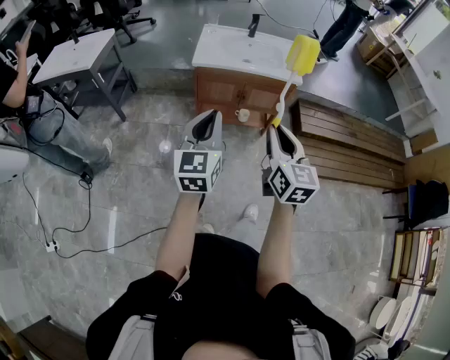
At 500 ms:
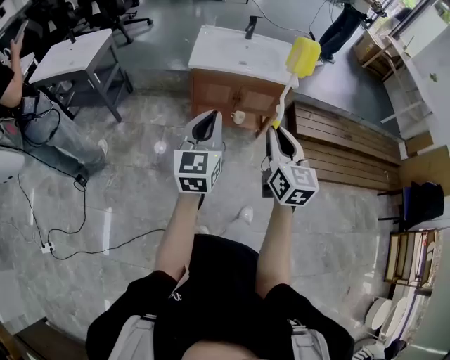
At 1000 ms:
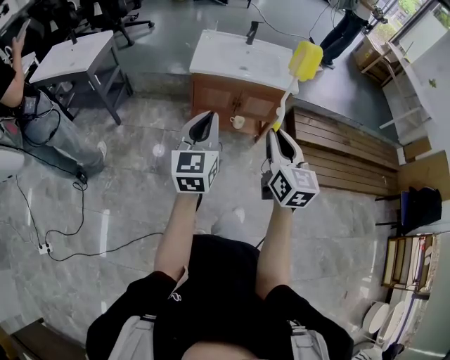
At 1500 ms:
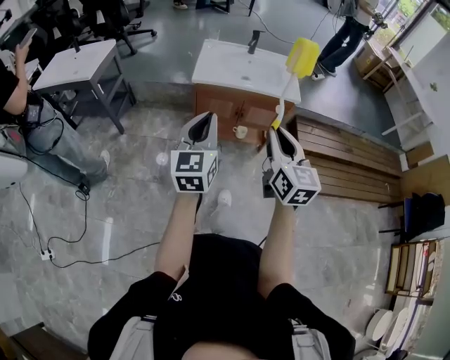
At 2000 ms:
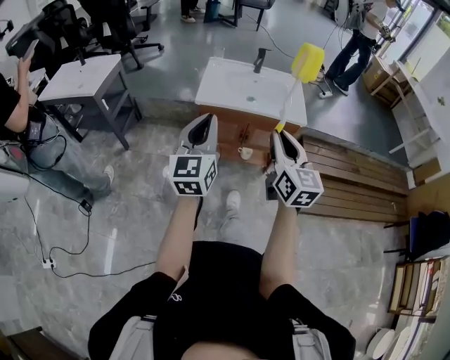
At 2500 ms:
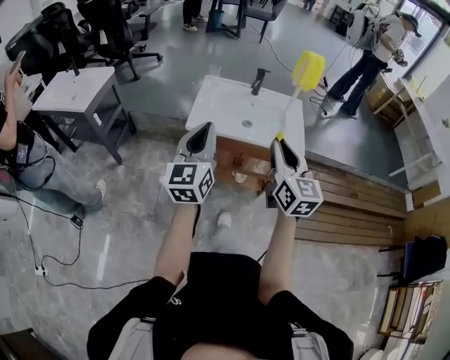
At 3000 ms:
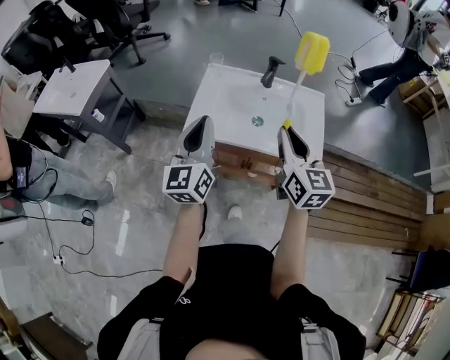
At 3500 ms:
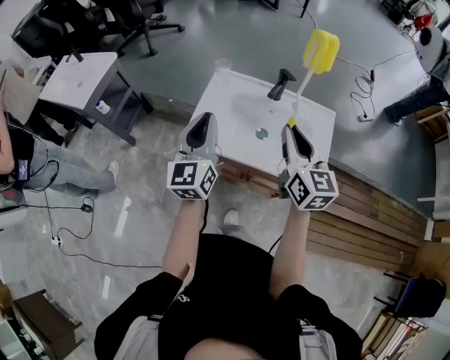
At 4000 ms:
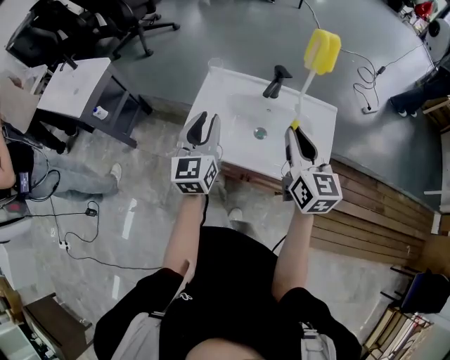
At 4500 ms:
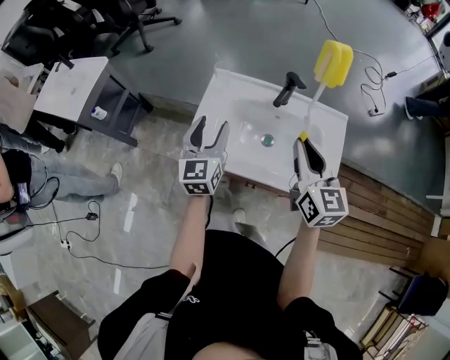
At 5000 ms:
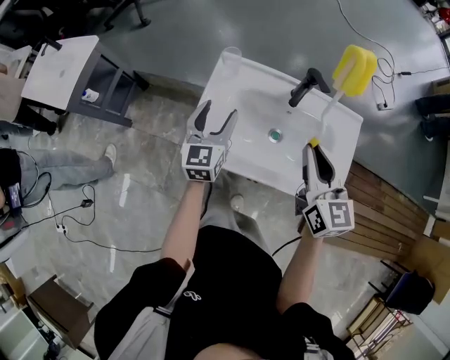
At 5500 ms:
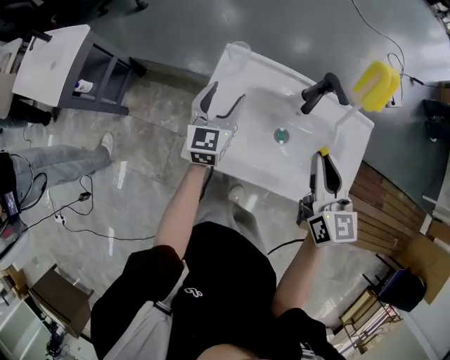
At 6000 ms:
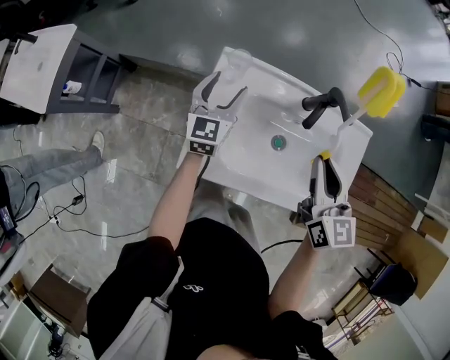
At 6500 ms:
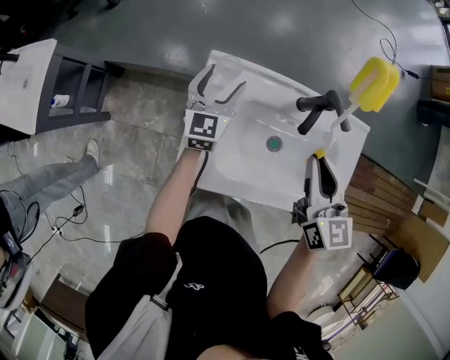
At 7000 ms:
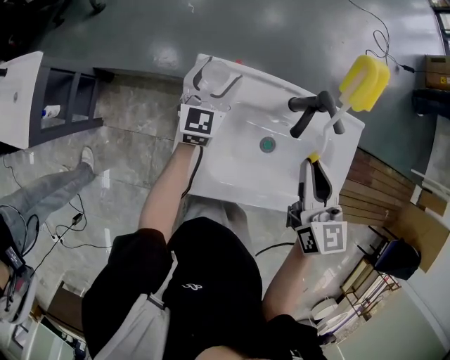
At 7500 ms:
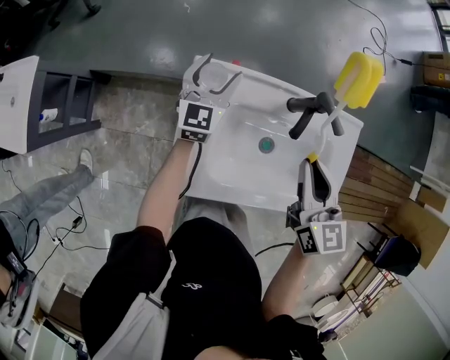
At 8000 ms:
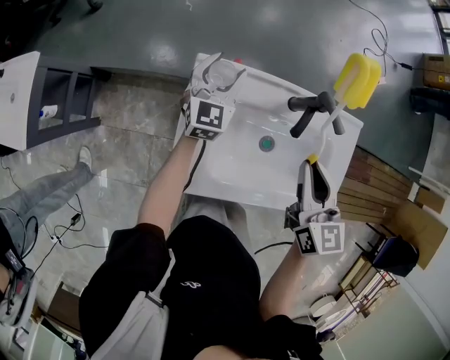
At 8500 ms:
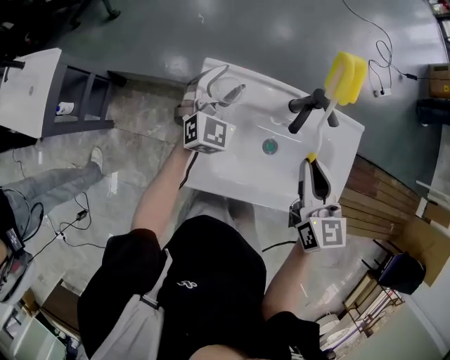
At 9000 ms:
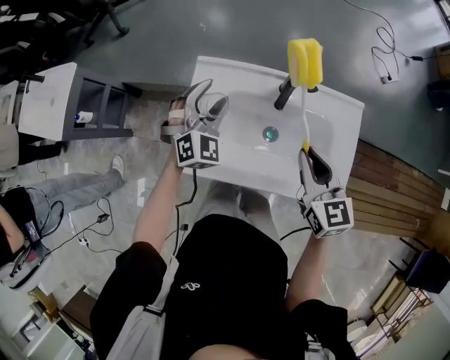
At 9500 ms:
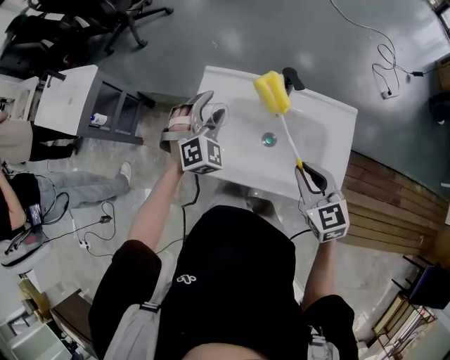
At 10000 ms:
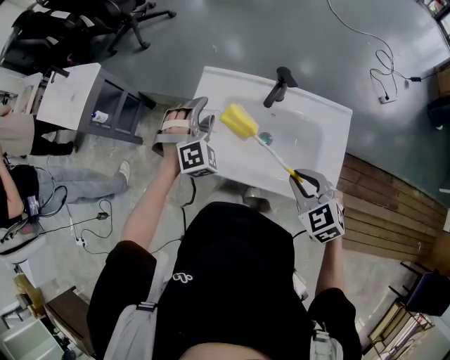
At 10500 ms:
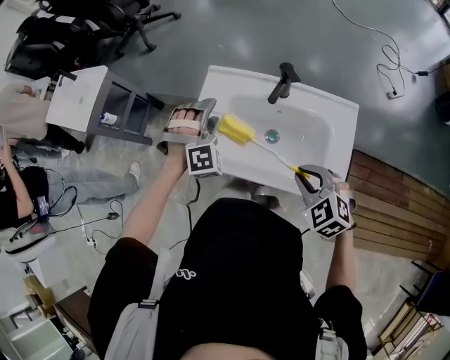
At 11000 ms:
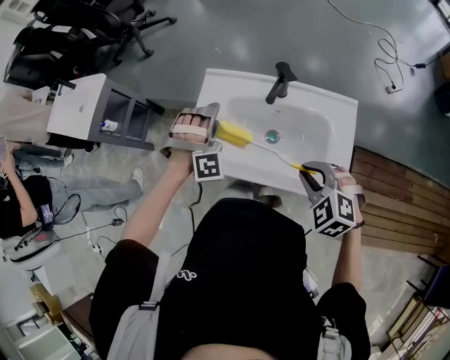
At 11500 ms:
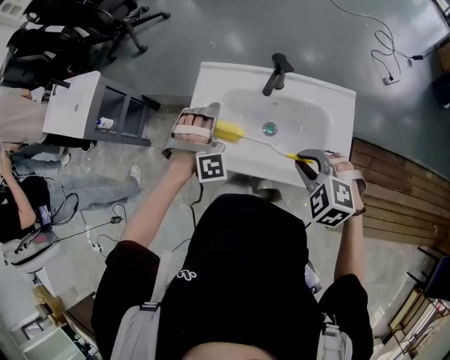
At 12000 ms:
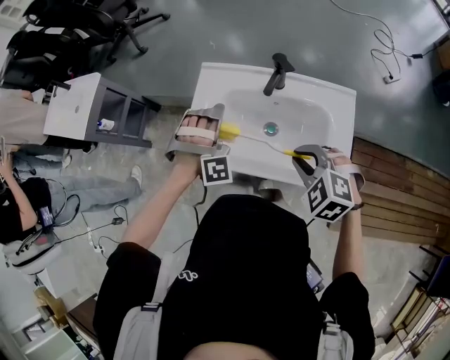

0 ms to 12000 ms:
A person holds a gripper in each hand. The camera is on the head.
0 ms to 2000 ms: The grippers both shift forward by roughly 15 cm.
2000 ms to 4000 ms: The two grippers travel together, forward, some 40 cm.
4000 ms to 6000 ms: The left gripper travels forward and downward by approximately 30 cm, and opens up. Meanwhile the right gripper moves forward and downward, approximately 15 cm.
6000 ms to 8000 ms: The left gripper travels forward by some 10 cm.
8000 ms to 10000 ms: The right gripper changes place by approximately 20 cm, and turns by about 50 degrees; the left gripper shifts by approximately 20 cm, and twists about 60 degrees clockwise, seen from behind.
10000 ms to 12000 ms: The left gripper changes its angle by roughly 30 degrees. The right gripper rotates approximately 20 degrees.

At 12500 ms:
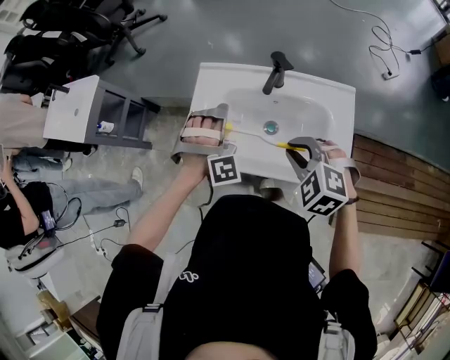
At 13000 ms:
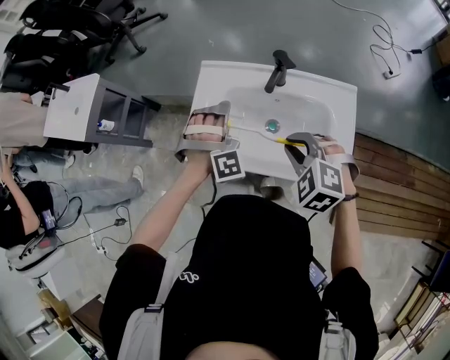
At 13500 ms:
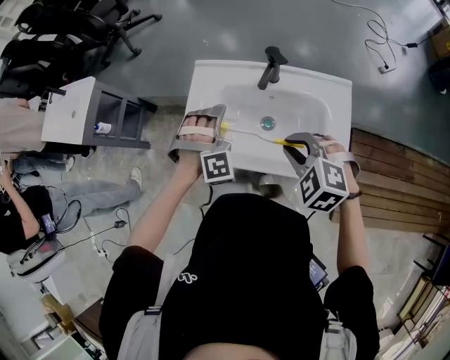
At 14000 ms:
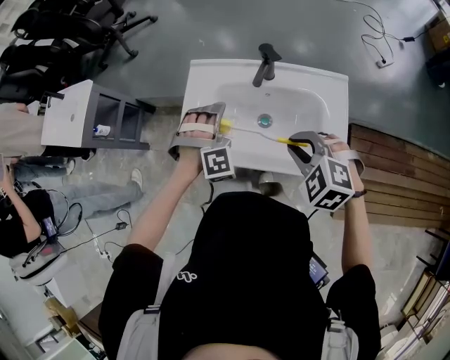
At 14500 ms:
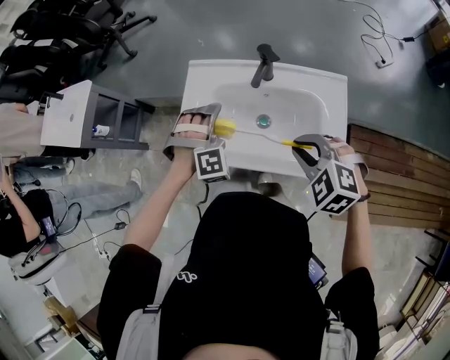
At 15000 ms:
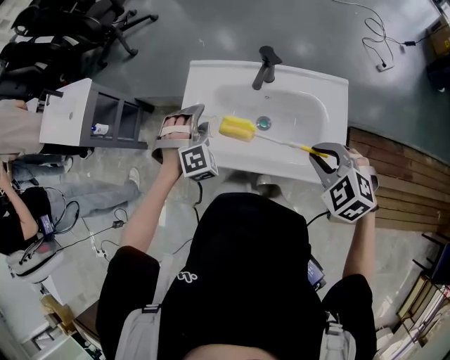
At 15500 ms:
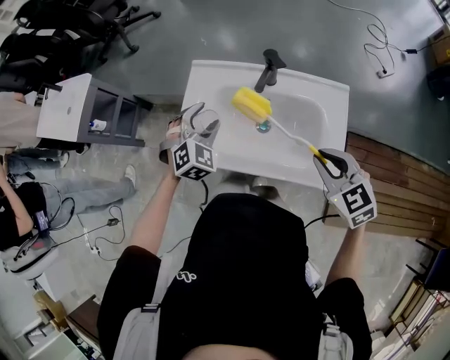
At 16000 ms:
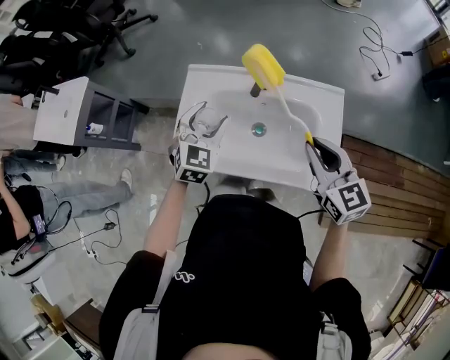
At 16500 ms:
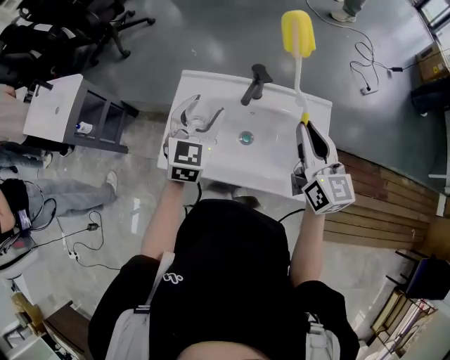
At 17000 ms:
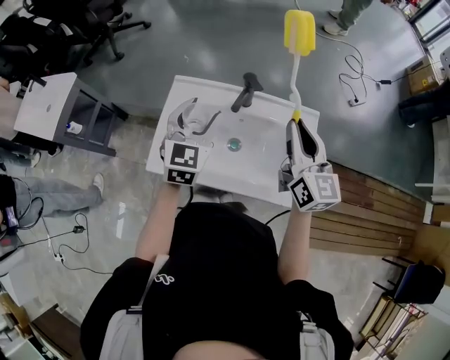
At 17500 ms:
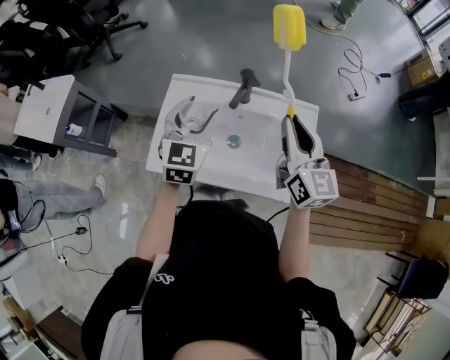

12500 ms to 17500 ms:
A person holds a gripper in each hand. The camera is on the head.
12500 ms to 15000 ms: The left gripper shifts by approximately 5 cm, and changes its angle by approximately 20 degrees. Meanwhile the right gripper is displaced to the right and backward by approximately 10 cm.
15000 ms to 17500 ms: The left gripper goes about 15 cm upward and to the right, and rolls counterclockwise, seen from behind, by about 60 degrees, while the right gripper goes some 15 cm upward and forward, and tips its fingers upward by approximately 50 degrees.

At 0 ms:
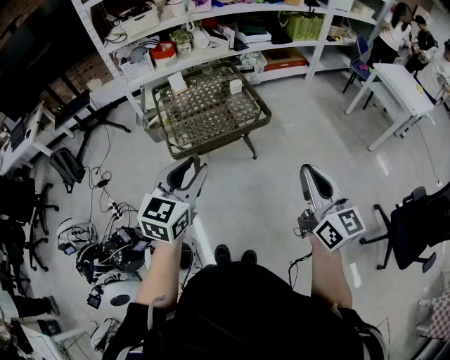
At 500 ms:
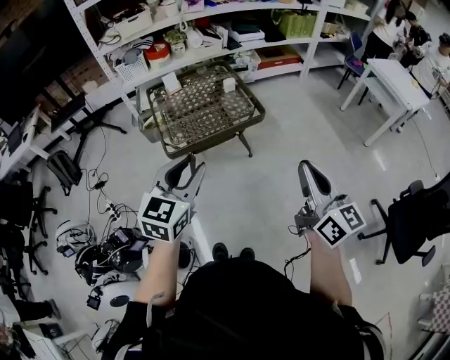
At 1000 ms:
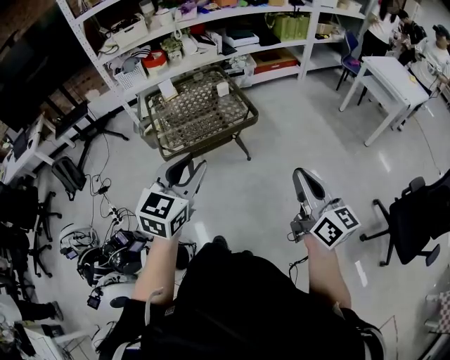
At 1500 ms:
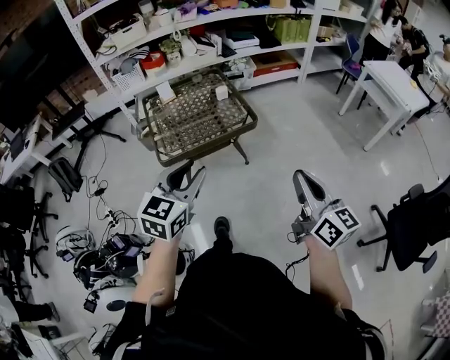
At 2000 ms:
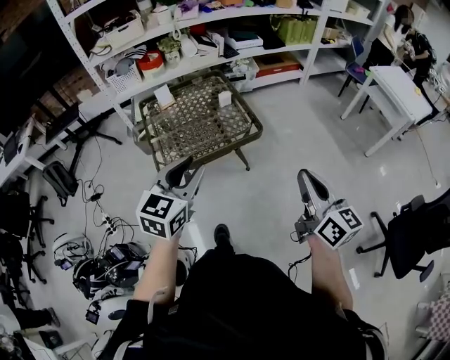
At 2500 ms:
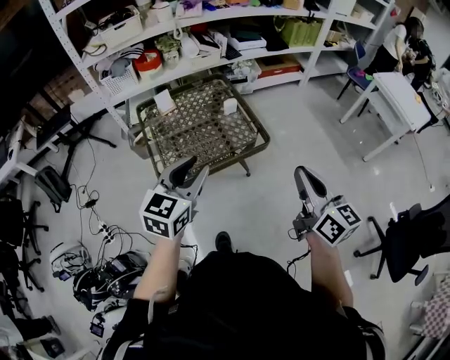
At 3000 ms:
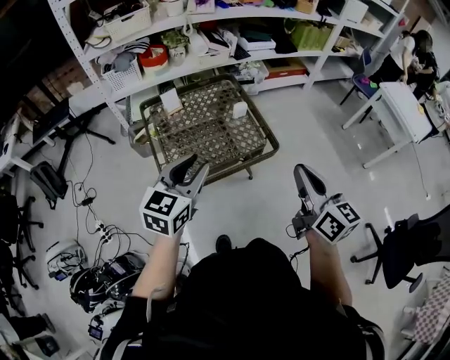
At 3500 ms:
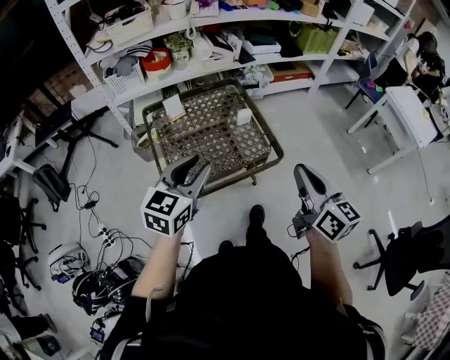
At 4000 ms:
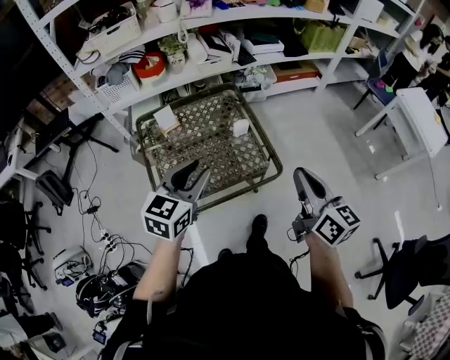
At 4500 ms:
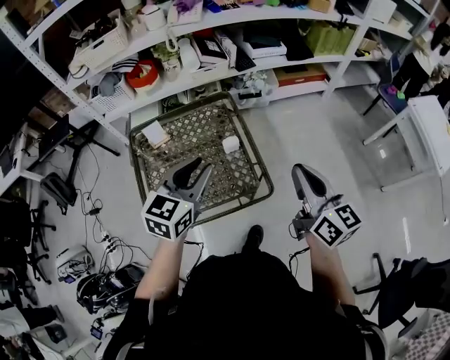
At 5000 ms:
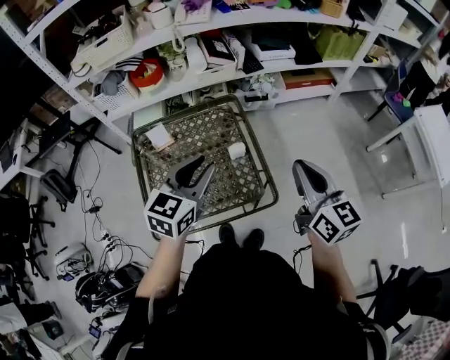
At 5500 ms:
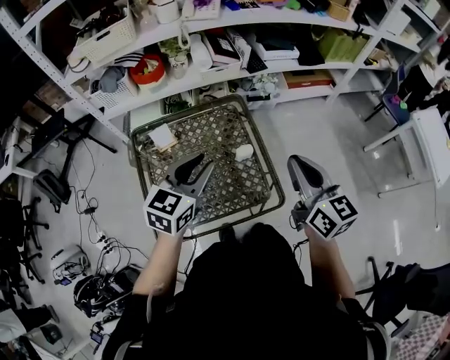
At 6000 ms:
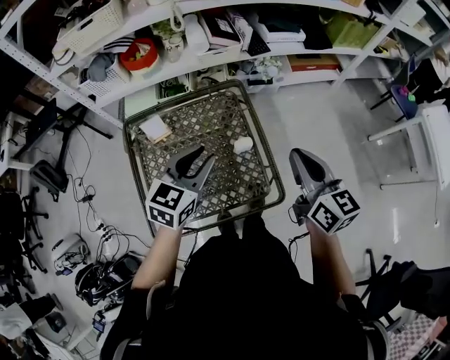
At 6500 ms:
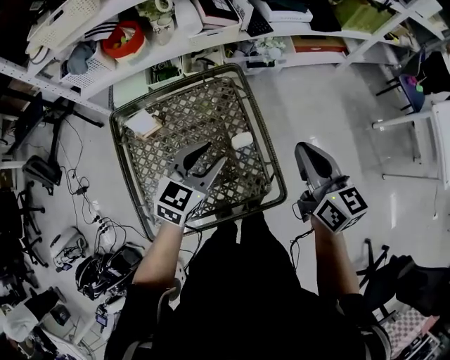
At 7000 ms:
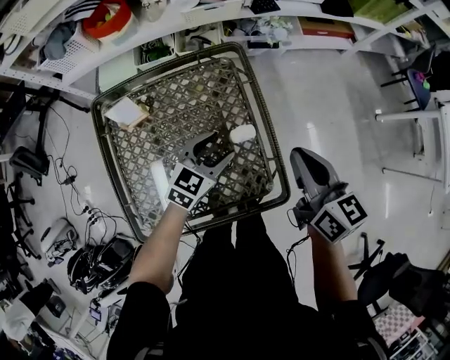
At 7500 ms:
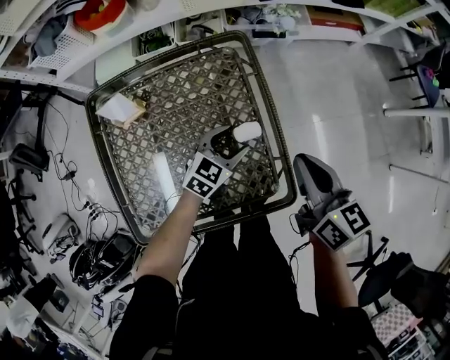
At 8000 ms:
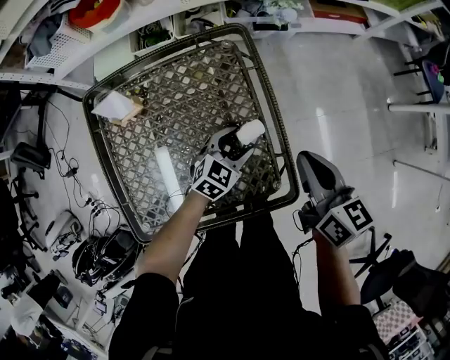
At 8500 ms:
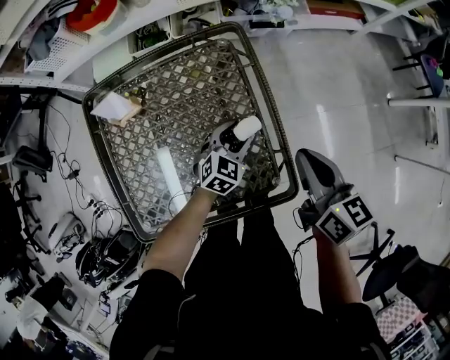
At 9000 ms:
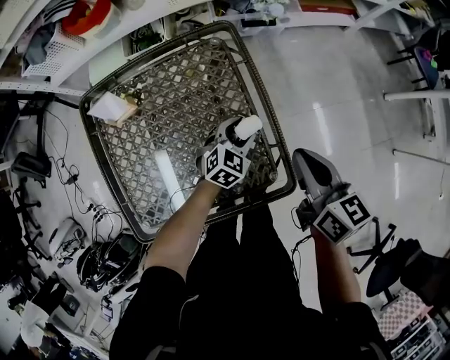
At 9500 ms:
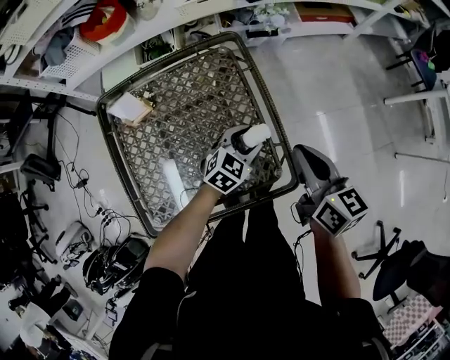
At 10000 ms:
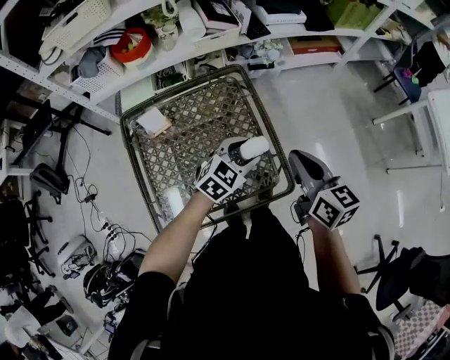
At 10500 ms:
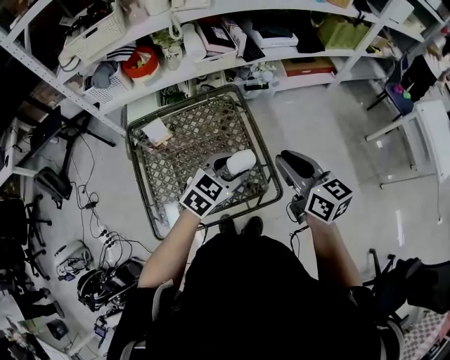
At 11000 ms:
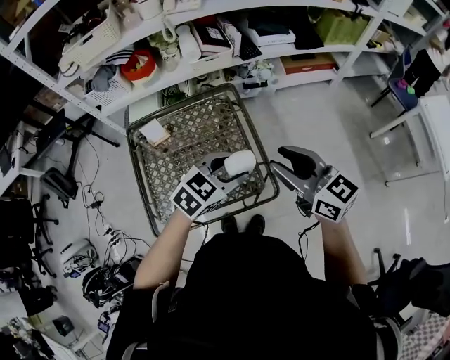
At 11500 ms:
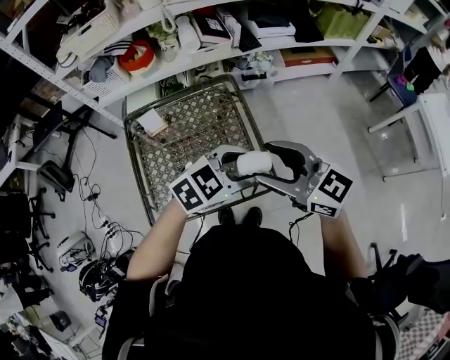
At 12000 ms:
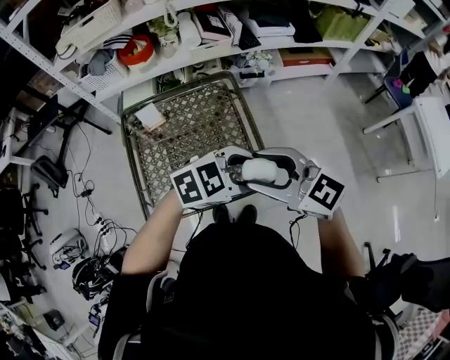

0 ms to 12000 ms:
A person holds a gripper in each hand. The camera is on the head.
0 ms to 2000 ms: The two grippers go about 10 cm forward.
2000 ms to 4000 ms: Both grippers move forward, about 25 cm.
4000 ms to 6000 ms: Both grippers travel together forward, roughly 20 cm.
6000 ms to 8000 ms: The left gripper shifts approximately 30 cm downward, and opens. The right gripper travels downward by some 20 cm.
8000 ms to 10000 ms: The right gripper travels upward and backward by some 10 cm. Meanwhile the left gripper shifts approximately 15 cm upward.
10000 ms to 12000 ms: The right gripper changes place by approximately 15 cm, swivels approximately 50 degrees, and opens. Meanwhile the left gripper heads upward, covering roughly 15 cm, and changes its angle by some 30 degrees.
